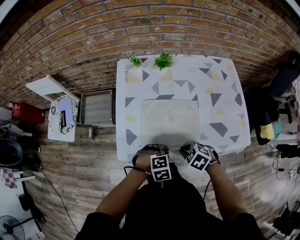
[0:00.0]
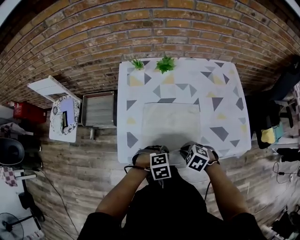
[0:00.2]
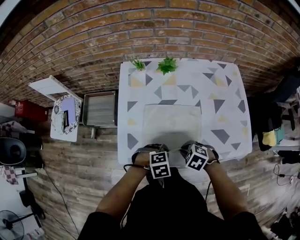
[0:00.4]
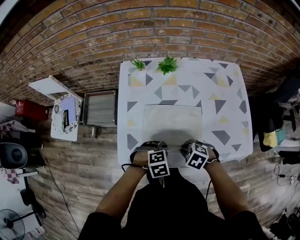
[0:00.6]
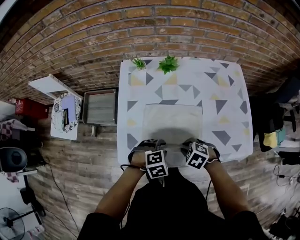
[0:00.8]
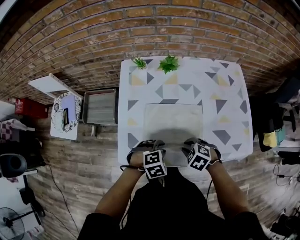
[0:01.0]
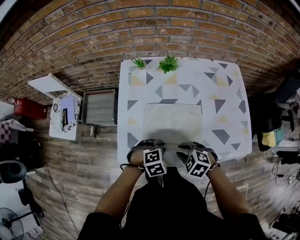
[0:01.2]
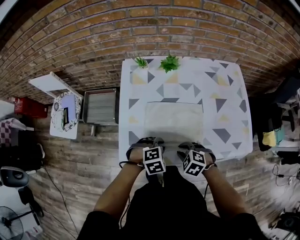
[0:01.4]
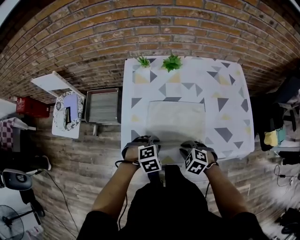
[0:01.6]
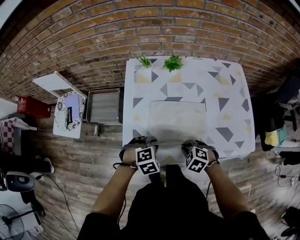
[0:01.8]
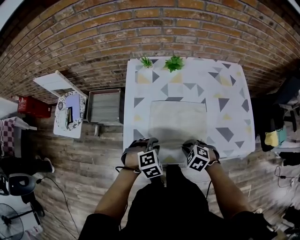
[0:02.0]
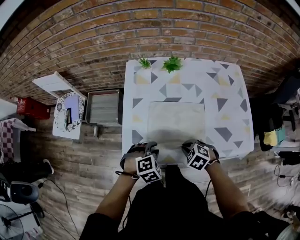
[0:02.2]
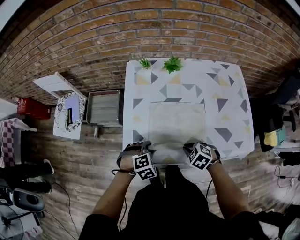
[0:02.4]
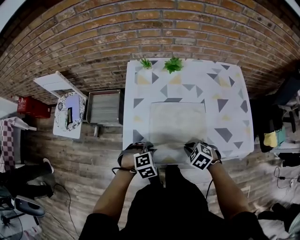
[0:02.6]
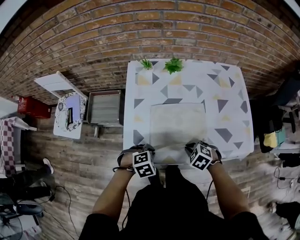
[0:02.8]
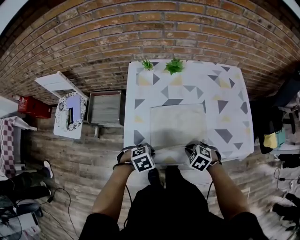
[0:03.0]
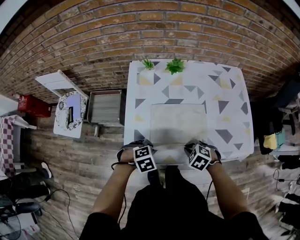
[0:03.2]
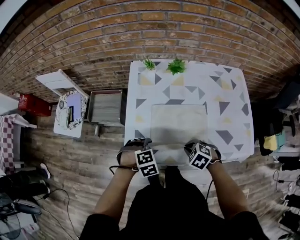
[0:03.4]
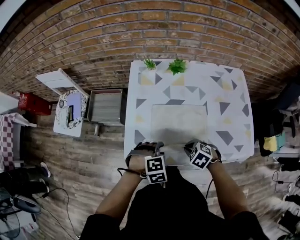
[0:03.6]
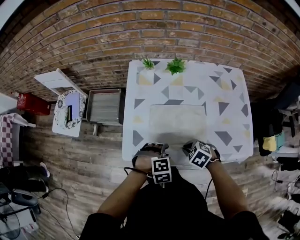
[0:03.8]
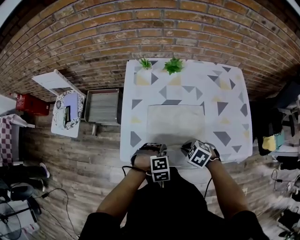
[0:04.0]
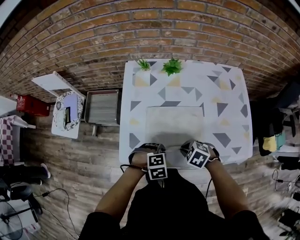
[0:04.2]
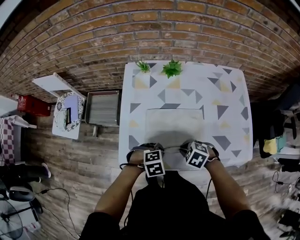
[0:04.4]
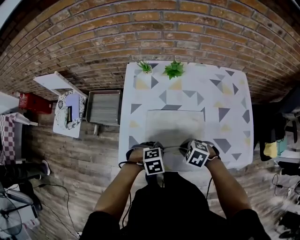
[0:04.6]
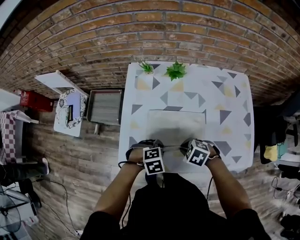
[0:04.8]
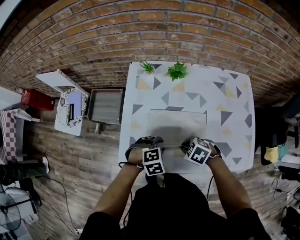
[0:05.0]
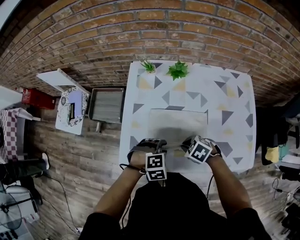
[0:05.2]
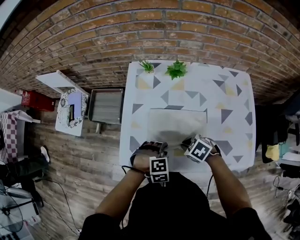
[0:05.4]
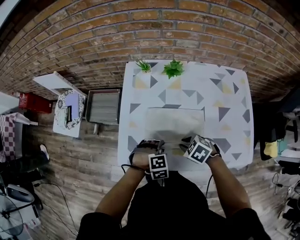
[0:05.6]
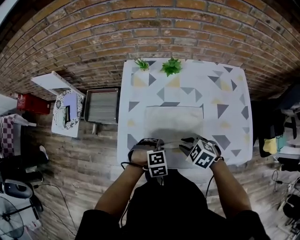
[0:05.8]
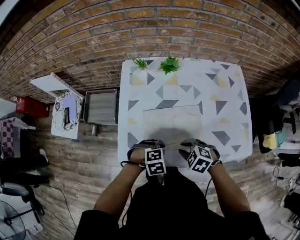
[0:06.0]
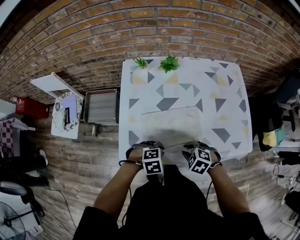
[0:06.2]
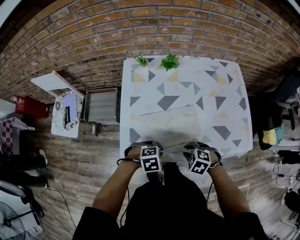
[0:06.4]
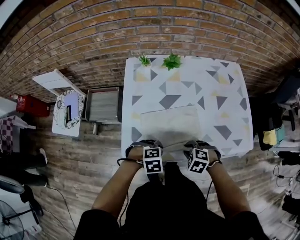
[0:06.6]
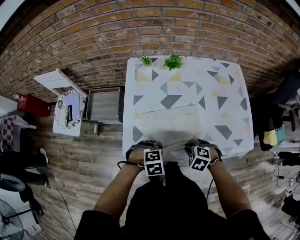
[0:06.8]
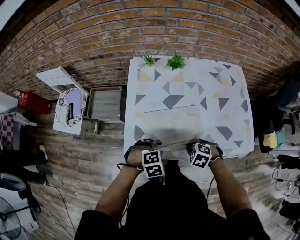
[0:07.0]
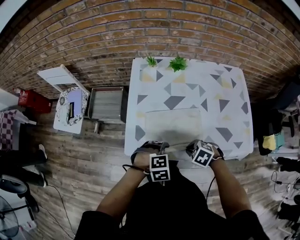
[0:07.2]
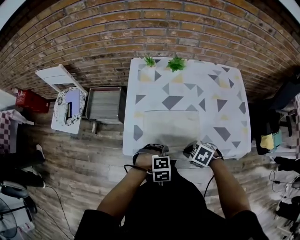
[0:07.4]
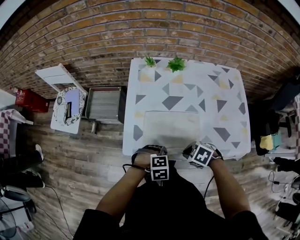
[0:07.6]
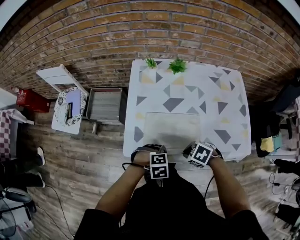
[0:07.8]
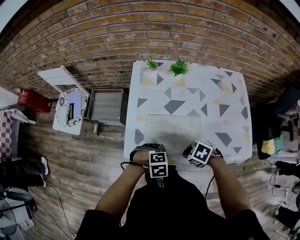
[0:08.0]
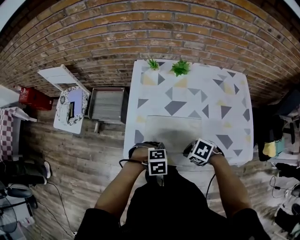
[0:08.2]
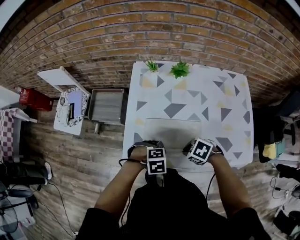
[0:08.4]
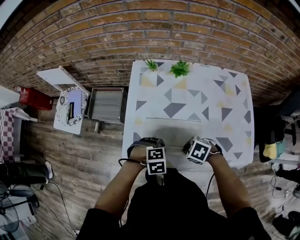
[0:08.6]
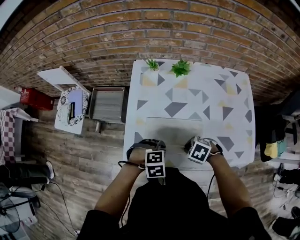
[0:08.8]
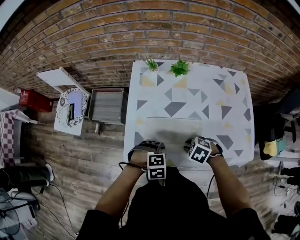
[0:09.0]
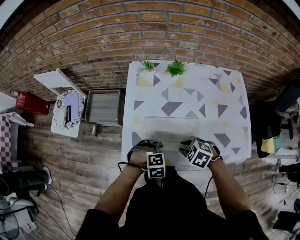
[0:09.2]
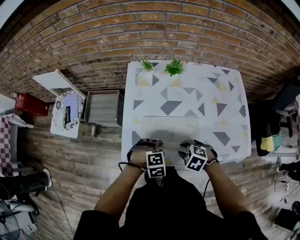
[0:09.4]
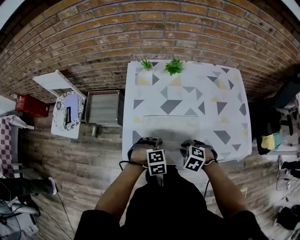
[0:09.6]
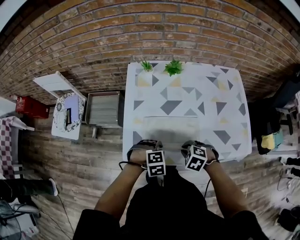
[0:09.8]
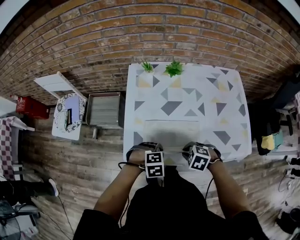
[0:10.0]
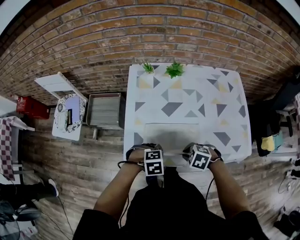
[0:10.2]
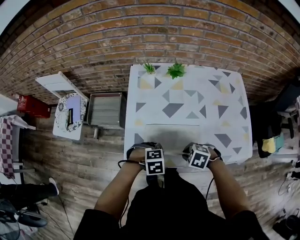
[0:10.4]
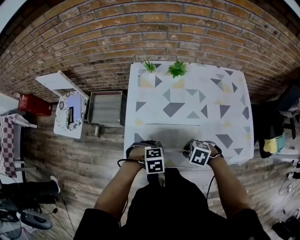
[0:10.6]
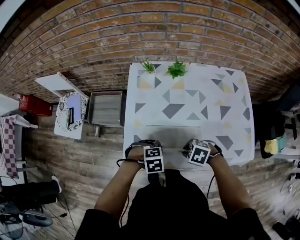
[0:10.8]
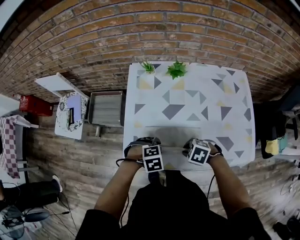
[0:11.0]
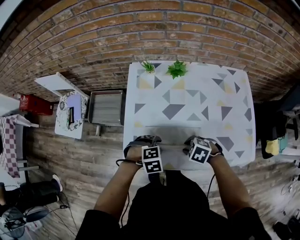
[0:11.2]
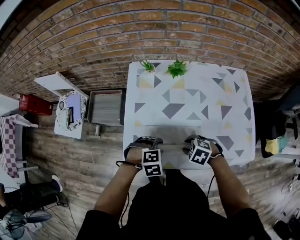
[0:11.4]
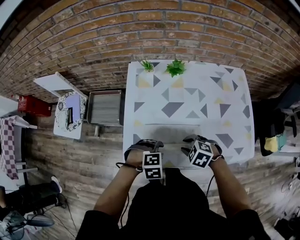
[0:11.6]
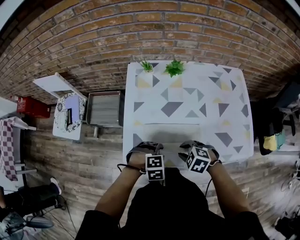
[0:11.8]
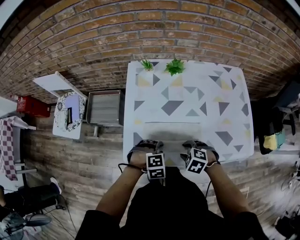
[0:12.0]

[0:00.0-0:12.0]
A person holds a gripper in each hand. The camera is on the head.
0:00.0 to 0:01.6: The left gripper moves roughly 10 cm.
0:01.6 to 0:03.0: The left gripper changes place by some 5 cm.
0:03.0 to 0:04.4: The left gripper shifts by roughly 10 cm, and opens, then closes once more.
0:04.4 to 0:06.0: The left gripper opens, then closes once more.
0:06.0 to 0:07.6: The left gripper moves approximately 5 cm, and opens, then closes again. The right gripper shifts by some 5 cm.
0:07.6 to 0:09.0: The right gripper shifts by some 10 cm. Meanwhile the left gripper moves some 5 cm.
0:09.0 to 0:10.4: The right gripper shifts by about 5 cm.
0:10.4 to 0:12.0: The left gripper opens its fingers. The right gripper opens its fingers.

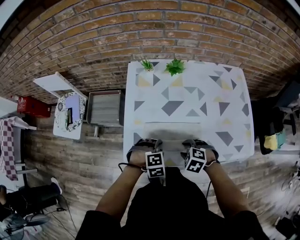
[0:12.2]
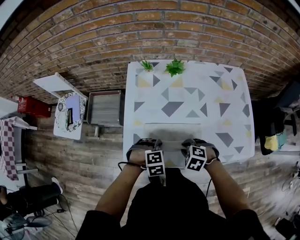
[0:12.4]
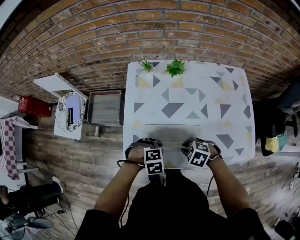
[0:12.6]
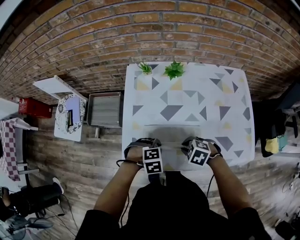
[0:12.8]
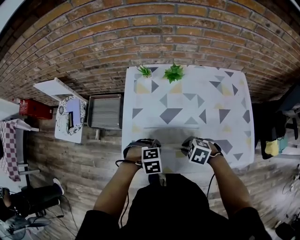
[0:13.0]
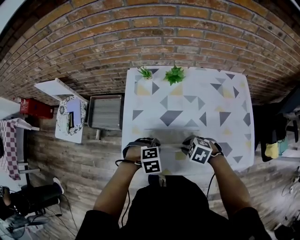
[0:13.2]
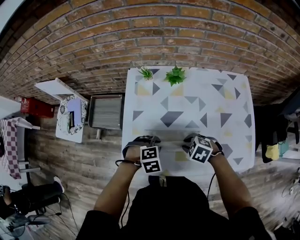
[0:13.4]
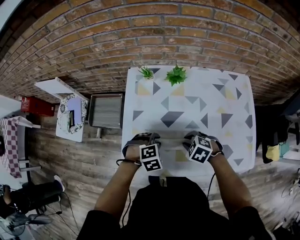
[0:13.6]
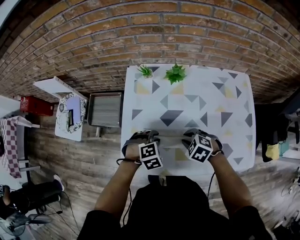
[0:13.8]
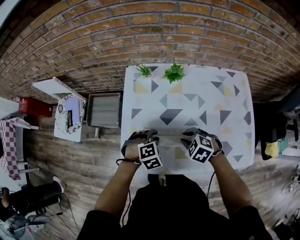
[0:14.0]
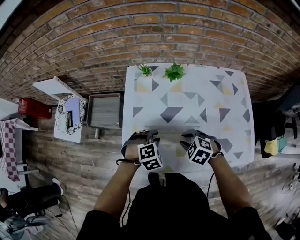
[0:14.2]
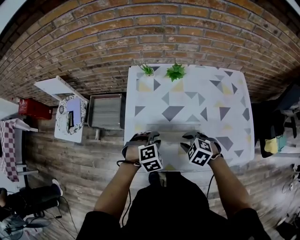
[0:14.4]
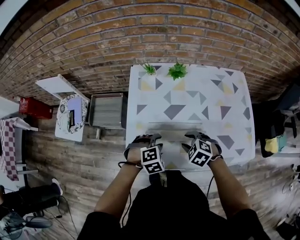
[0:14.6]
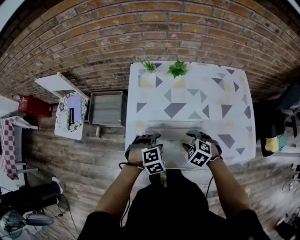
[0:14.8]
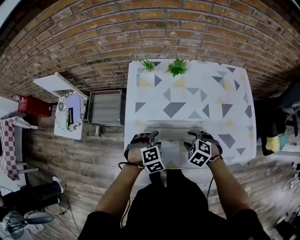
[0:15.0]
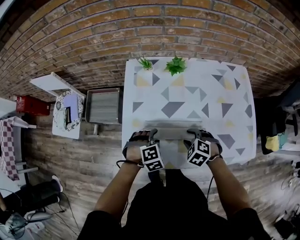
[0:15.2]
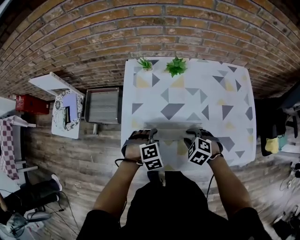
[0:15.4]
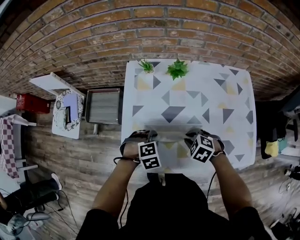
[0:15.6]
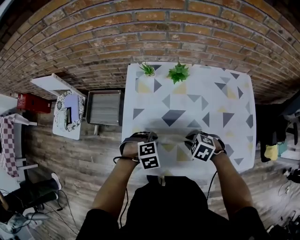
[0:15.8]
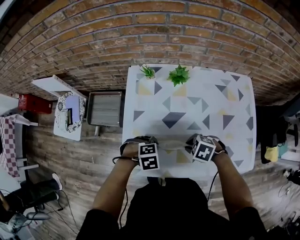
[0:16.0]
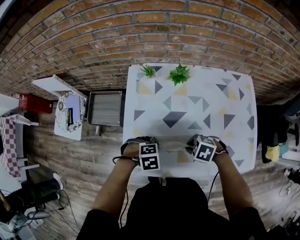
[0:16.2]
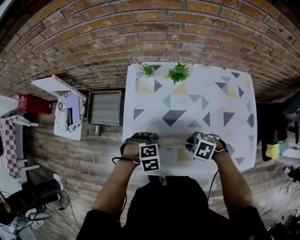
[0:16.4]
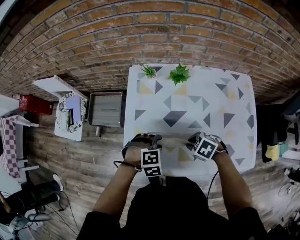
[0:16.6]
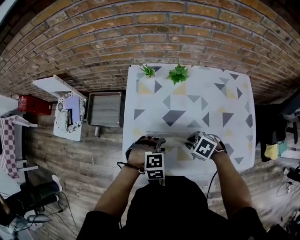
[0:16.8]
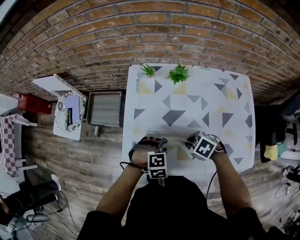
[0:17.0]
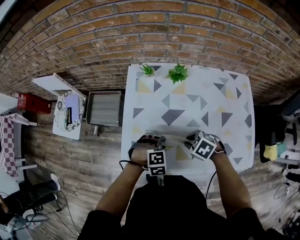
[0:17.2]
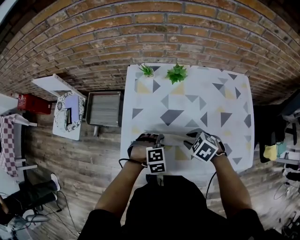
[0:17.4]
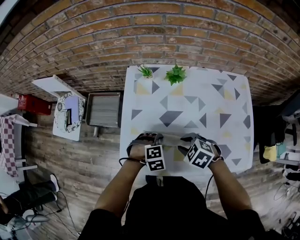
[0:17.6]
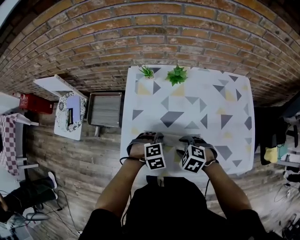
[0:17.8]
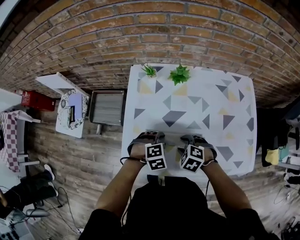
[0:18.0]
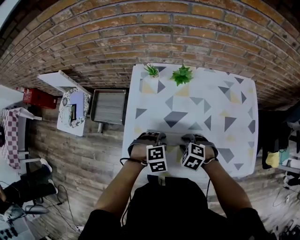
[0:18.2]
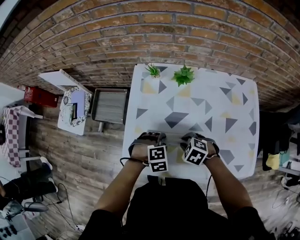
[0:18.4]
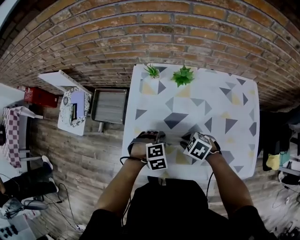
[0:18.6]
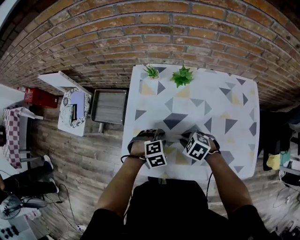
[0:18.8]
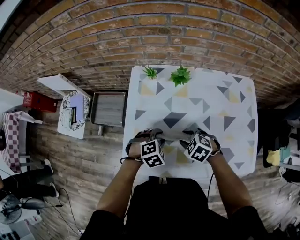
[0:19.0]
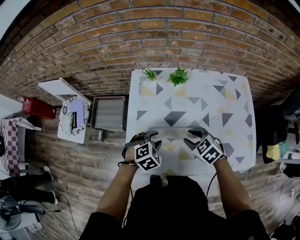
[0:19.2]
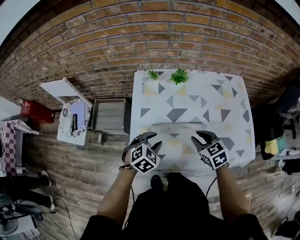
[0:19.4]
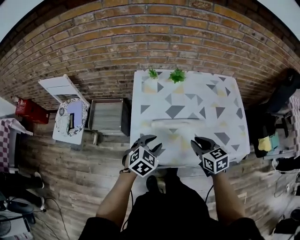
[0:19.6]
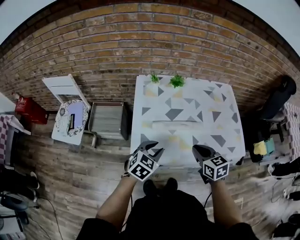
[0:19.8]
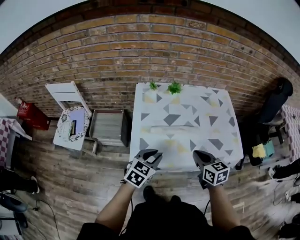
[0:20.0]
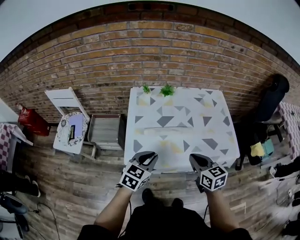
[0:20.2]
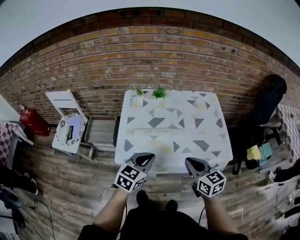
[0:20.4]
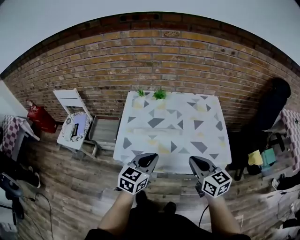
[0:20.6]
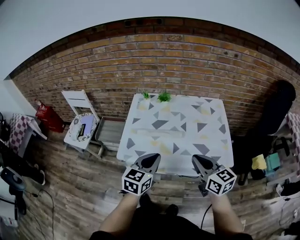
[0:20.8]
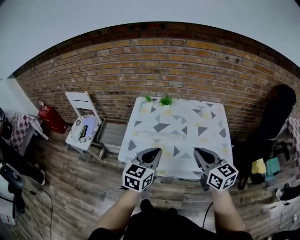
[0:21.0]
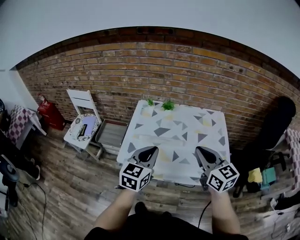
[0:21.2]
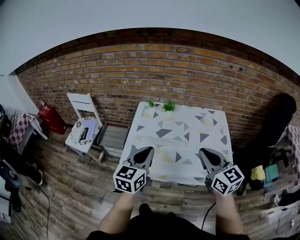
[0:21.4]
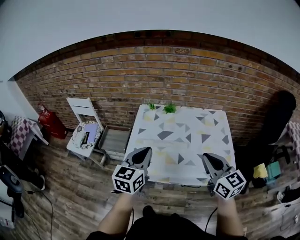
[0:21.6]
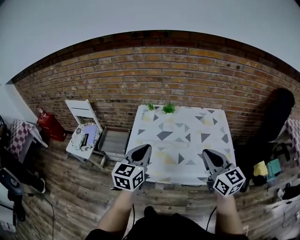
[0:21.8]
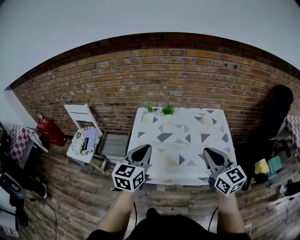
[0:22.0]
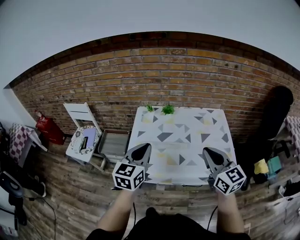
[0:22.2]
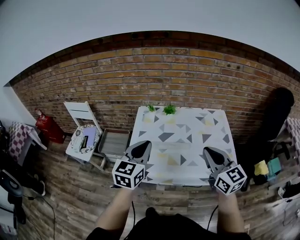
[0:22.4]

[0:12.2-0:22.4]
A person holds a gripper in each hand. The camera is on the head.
0:12.2 to 0:13.6: The right gripper moves approximately 10 cm, and closes. The left gripper shifts by some 10 cm.
0:13.6 to 0:15.2: The right gripper opens, while the left gripper opens up.
0:15.2 to 0:16.6: The left gripper closes, then opens again. The right gripper swivels approximately 20 degrees, and closes up.
0:16.6 to 0:18.0: The right gripper opens up.
0:18.0 to 0:19.4: Both grippers move upward, some 10 cm. The left gripper turns by about 30 degrees. The right gripper changes its angle by about 40 degrees.
0:19.4 to 0:21.0: The two grippers go roughly 30 cm upward, backward and to the right. The left gripper tips its fingers upward by some 40 degrees, and closes up. Meanwhile the right gripper angles its fingers upward, by approximately 30 degrees, and closes.
0:21.0 to 0:22.4: The left gripper shifts about 10 cm to the left, upward and forward, while the right gripper goes approximately 5 cm upward.

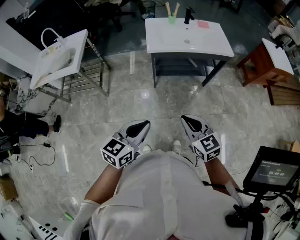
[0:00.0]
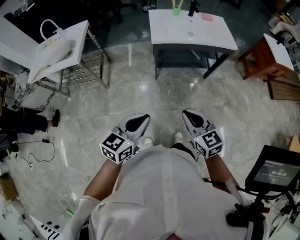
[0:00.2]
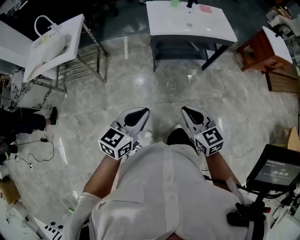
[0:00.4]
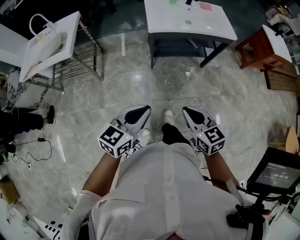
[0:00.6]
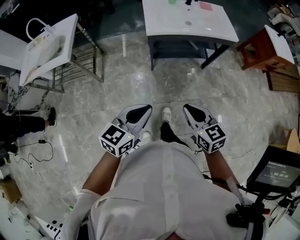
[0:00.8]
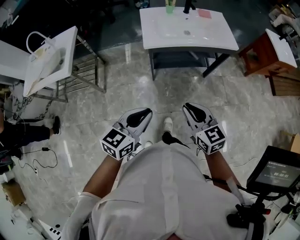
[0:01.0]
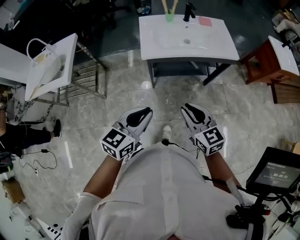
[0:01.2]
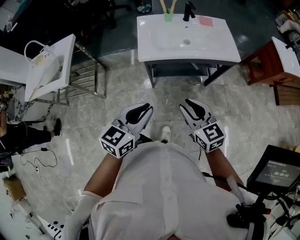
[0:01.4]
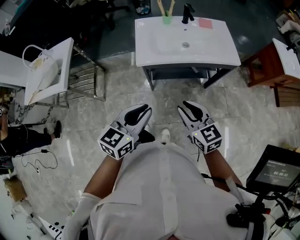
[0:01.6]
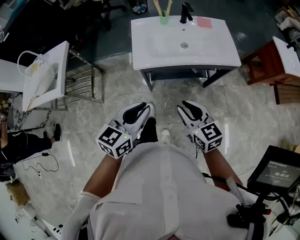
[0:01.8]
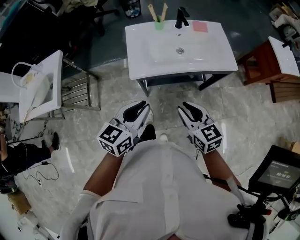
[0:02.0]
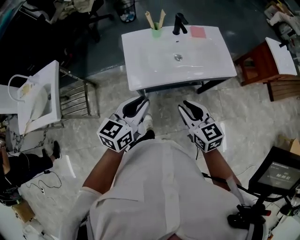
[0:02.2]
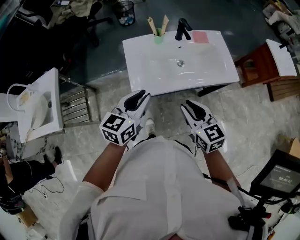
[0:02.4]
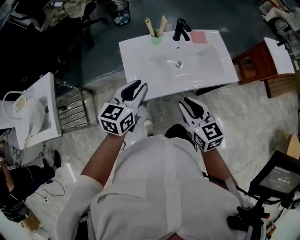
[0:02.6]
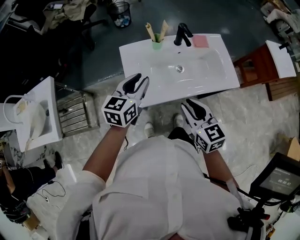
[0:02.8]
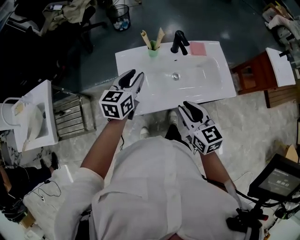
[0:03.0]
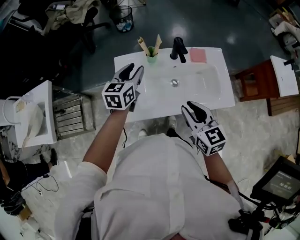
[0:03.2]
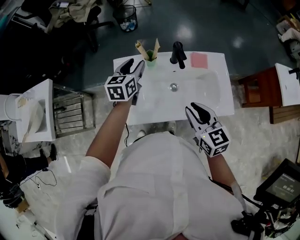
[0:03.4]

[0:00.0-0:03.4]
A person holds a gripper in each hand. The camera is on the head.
0:00.0 to 0:01.6: Both grippers move forward, approximately 25 cm.
0:01.6 to 0:03.4: The left gripper goes some 50 cm forward, and opens its fingers. Meanwhile the right gripper is displaced forward by some 35 cm.
